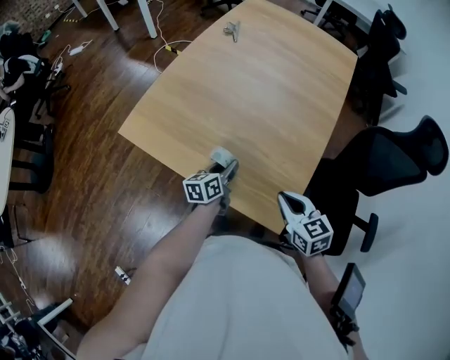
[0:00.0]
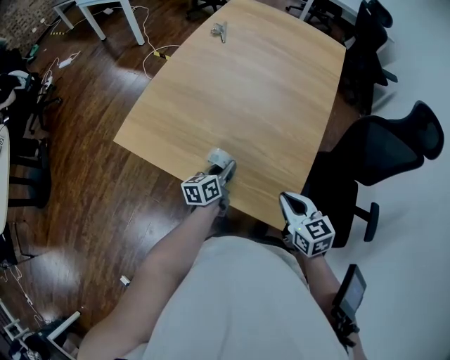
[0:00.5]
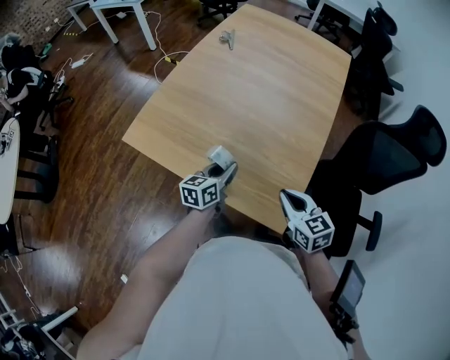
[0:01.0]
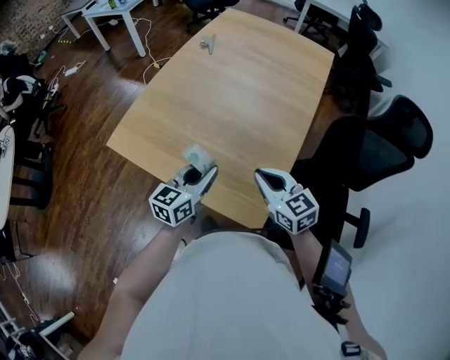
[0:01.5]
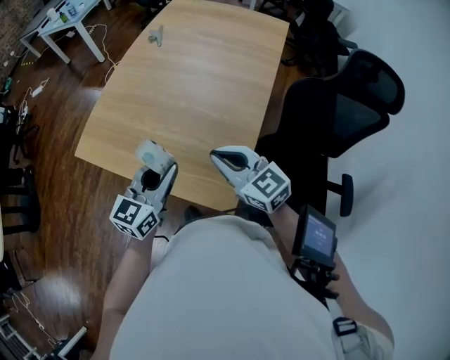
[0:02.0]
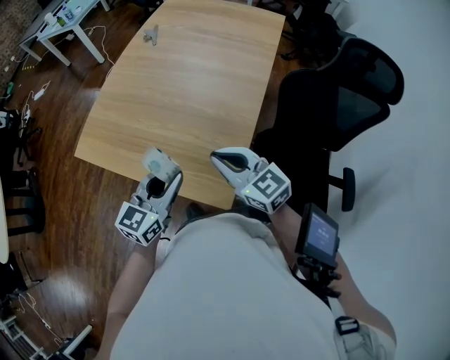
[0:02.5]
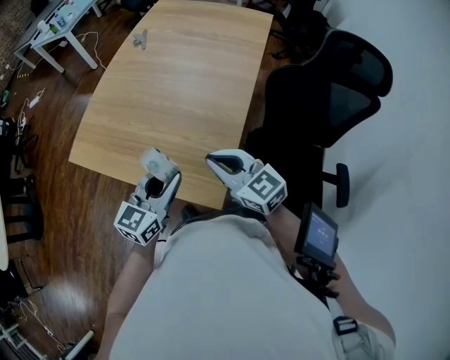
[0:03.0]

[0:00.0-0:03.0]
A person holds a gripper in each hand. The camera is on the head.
0:00.0 to 0:01.5: The right gripper is displaced upward by roughly 5 cm; the left gripper moves upward, some 15 cm, and swivels roughly 30 degrees.
0:01.5 to 0:03.0: The left gripper travels backward and to the right by roughly 10 cm. Meanwhile the right gripper ends up roughly 10 cm from where it was.

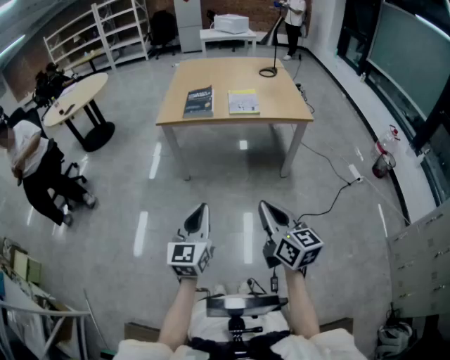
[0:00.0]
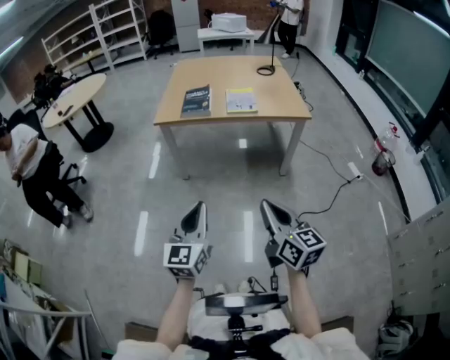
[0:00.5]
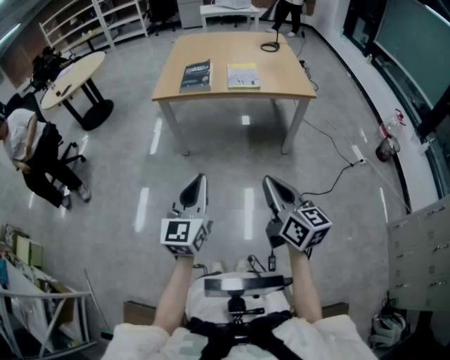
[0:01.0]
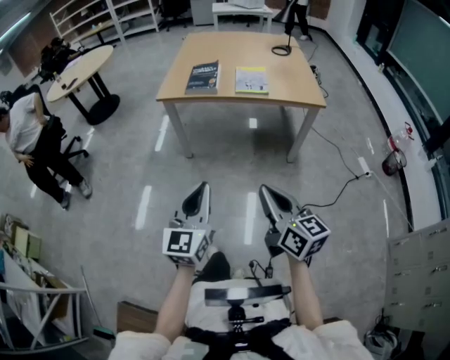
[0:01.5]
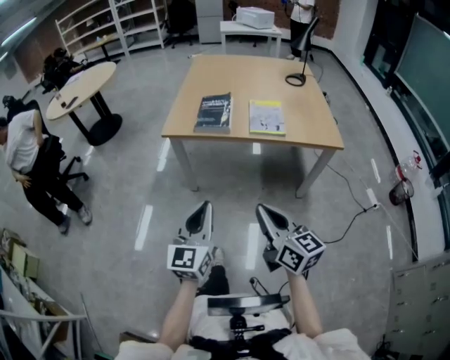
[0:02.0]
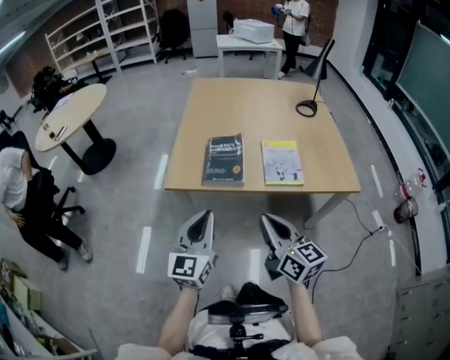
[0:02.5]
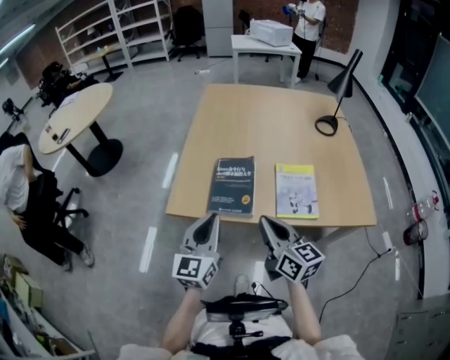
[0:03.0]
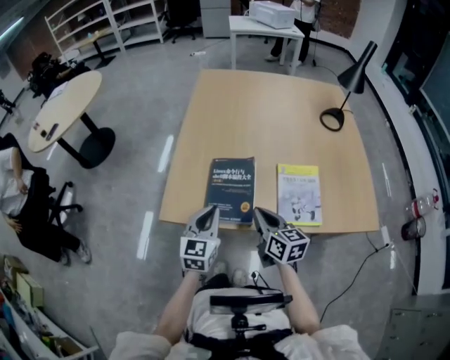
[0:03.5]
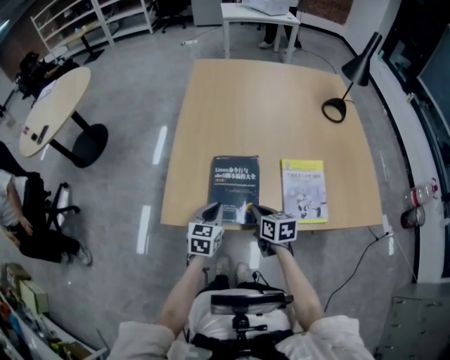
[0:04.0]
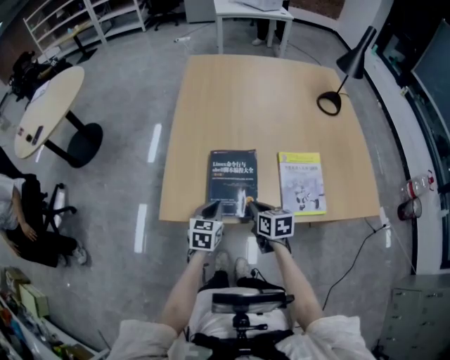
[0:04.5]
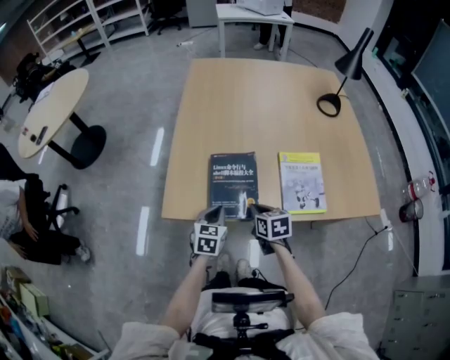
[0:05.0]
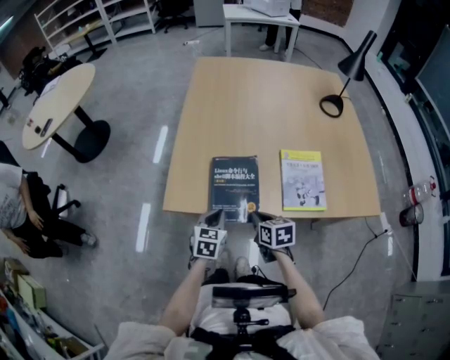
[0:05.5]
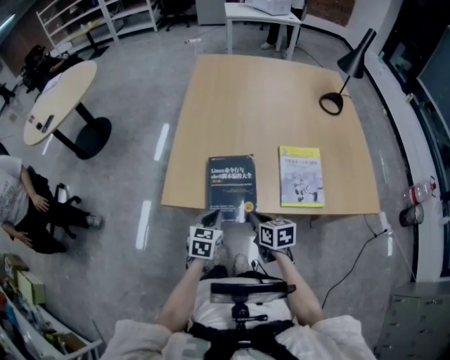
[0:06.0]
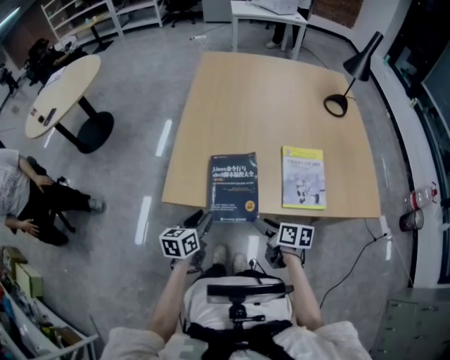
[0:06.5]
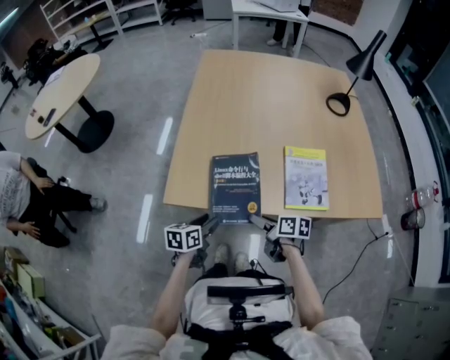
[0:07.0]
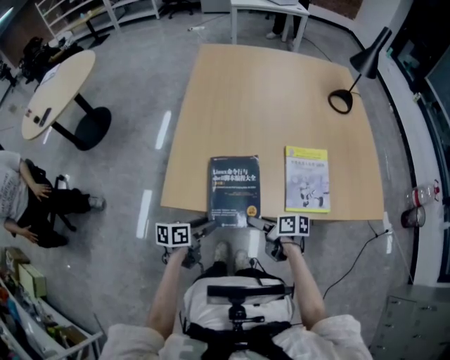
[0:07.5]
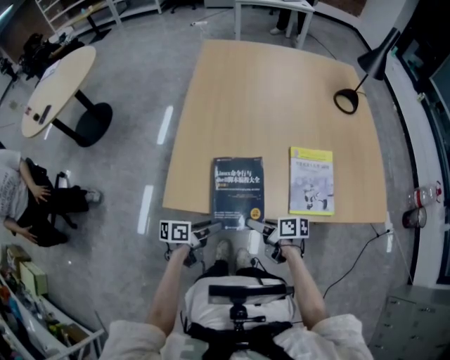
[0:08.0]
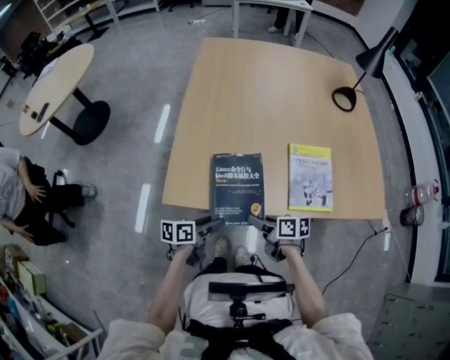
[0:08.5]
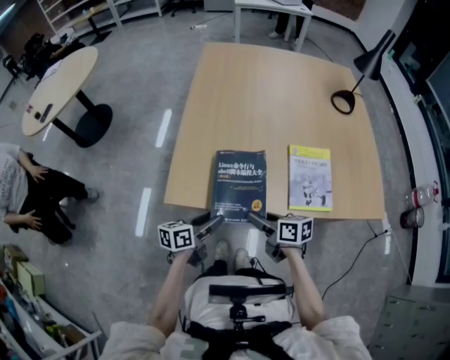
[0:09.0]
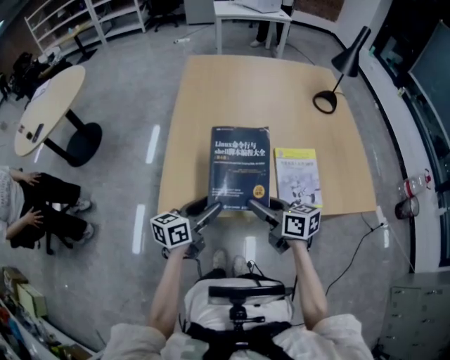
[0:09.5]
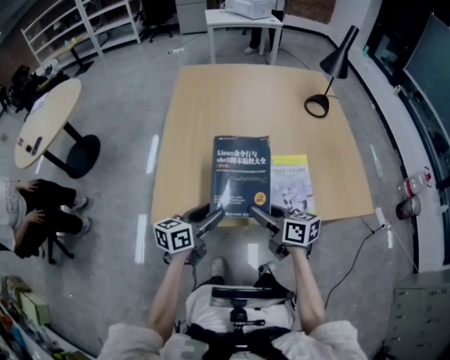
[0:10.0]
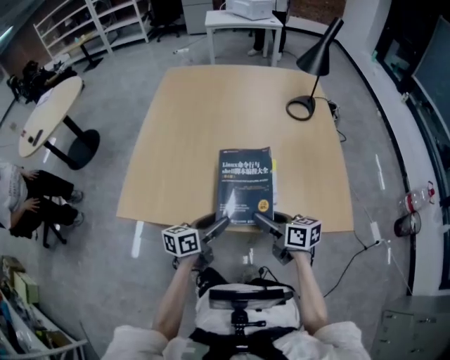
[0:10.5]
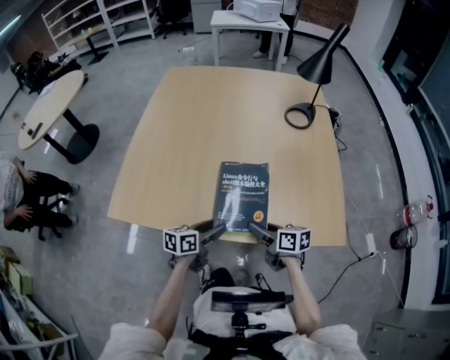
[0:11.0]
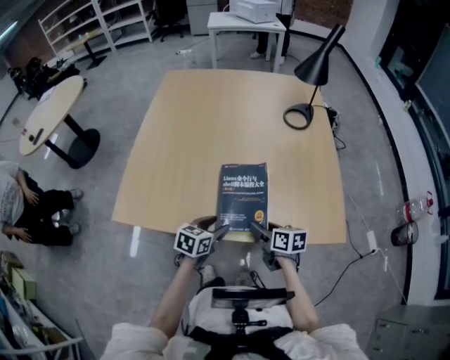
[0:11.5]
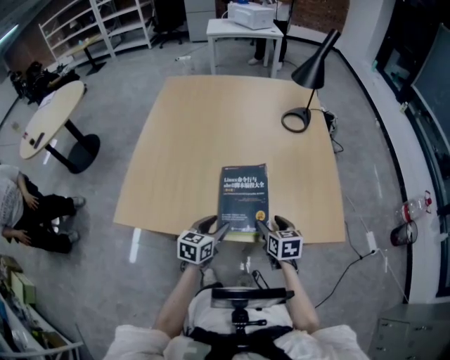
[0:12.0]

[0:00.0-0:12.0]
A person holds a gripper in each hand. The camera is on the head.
0:00.0 to 0:02.0: Both grippers travel together forward, some 25 cm.
0:02.0 to 0:04.0: The two grippers travel together, forward, some 60 cm. The right gripper points its fingers about 30 degrees further downward; the left gripper points its fingers roughly 30 degrees further downward.
0:04.0 to 0:06.0: The two grippers go approximately 10 cm backward.
0:06.0 to 0:08.0: The left gripper turns by roughly 60 degrees, and opens its fingers, while the right gripper turns by about 40 degrees, and opens up.
0:08.0 to 0:10.0: The left gripper shifts about 15 cm upward, forward and to the right, and rotates some 30 degrees, while the right gripper heads upward, covering about 15 cm, and rotates some 30 degrees.
0:10.0 to 0:12.0: The left gripper heads to the right, covering some 20 cm, and turns by some 20 degrees. Meanwhile the right gripper is displaced to the right and downward by approximately 30 cm, and changes its angle by roughly 30 degrees.

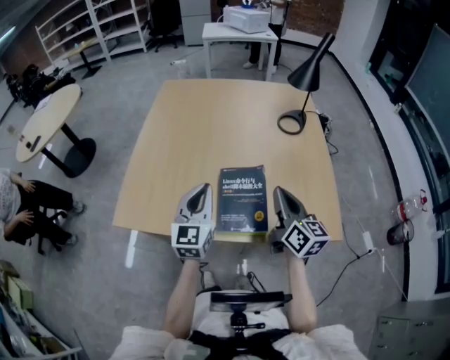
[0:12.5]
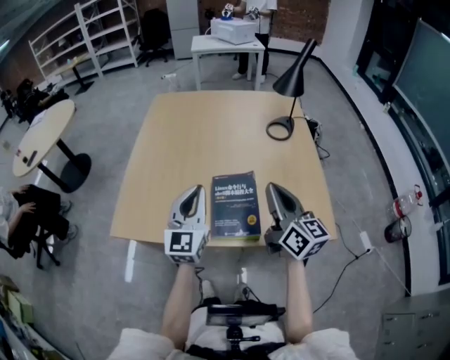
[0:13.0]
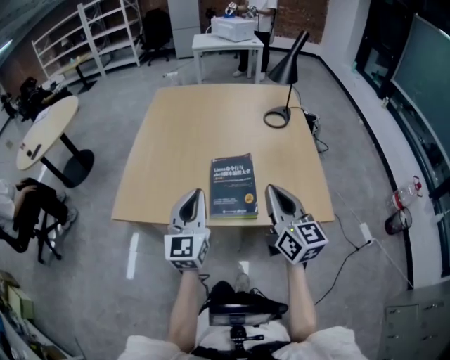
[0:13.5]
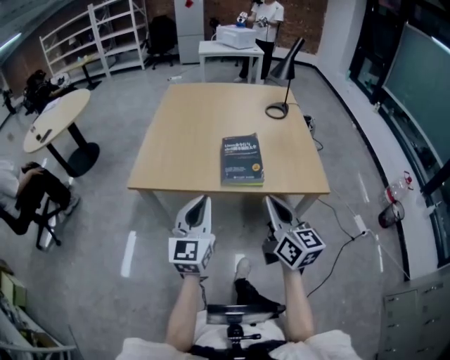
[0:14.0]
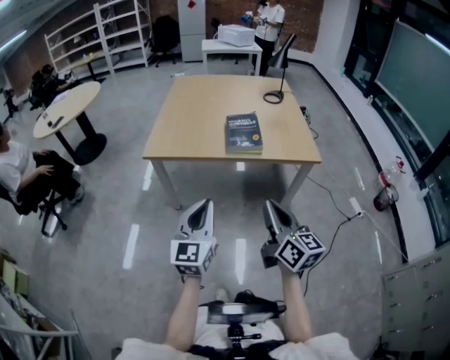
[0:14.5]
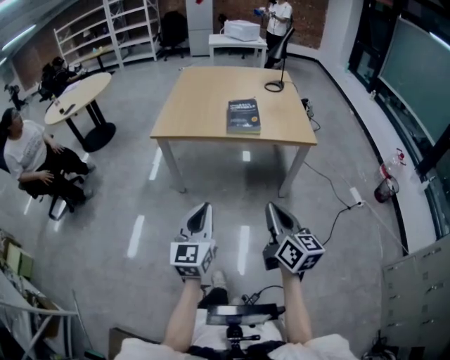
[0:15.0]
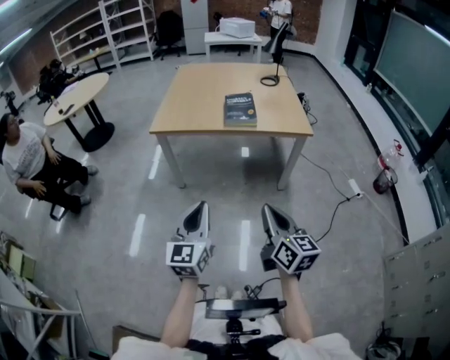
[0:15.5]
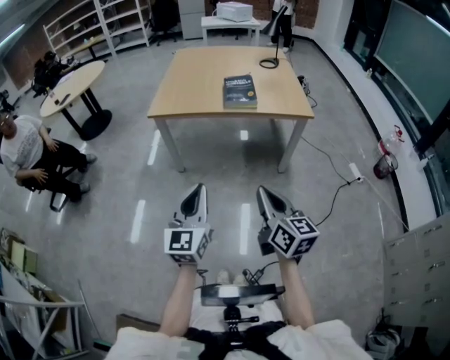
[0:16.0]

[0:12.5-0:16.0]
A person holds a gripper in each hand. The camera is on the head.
0:12.5 to 0:14.5: The two grippers travel together, backward, about 50 cm.
0:14.5 to 0:16.0: Both grippers move backward, approximately 20 cm.

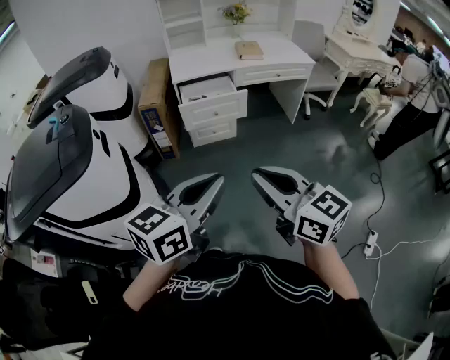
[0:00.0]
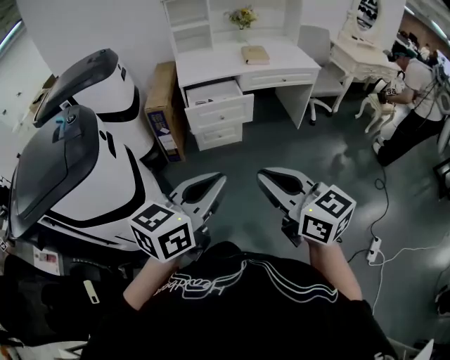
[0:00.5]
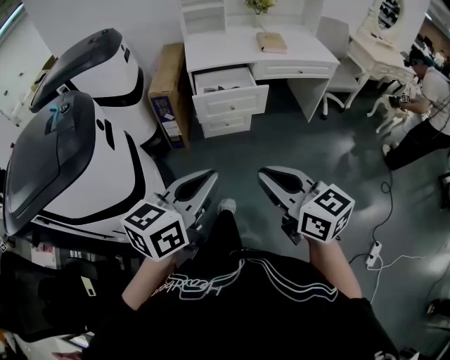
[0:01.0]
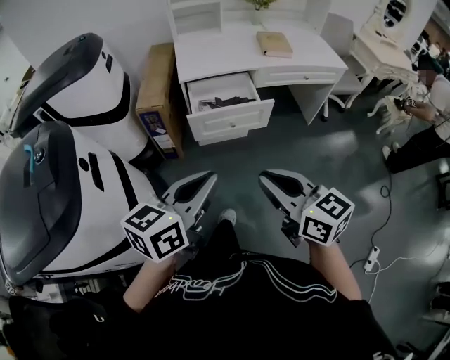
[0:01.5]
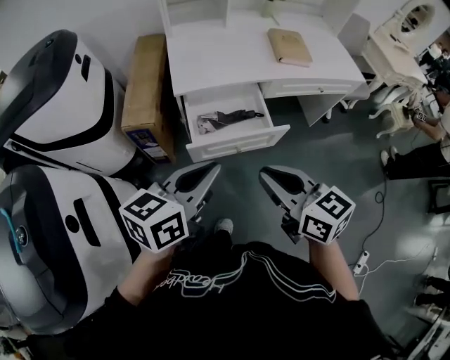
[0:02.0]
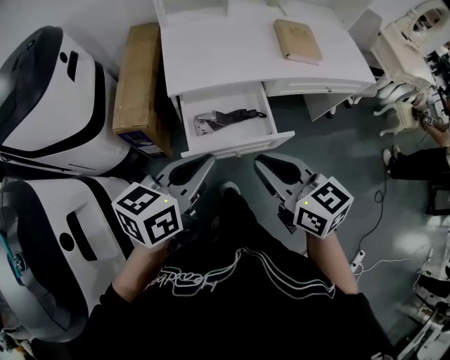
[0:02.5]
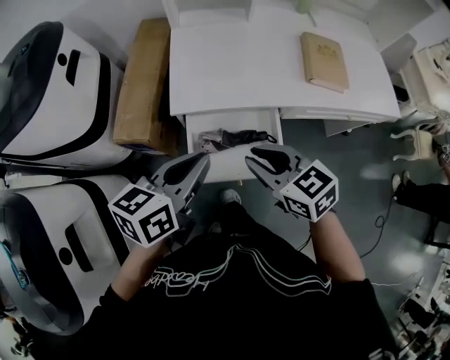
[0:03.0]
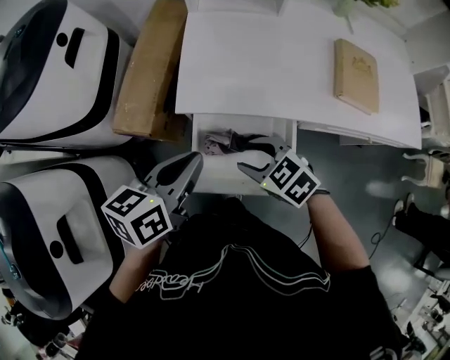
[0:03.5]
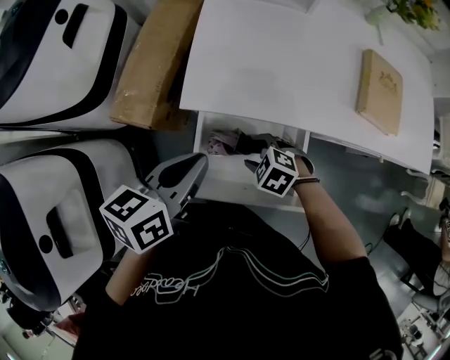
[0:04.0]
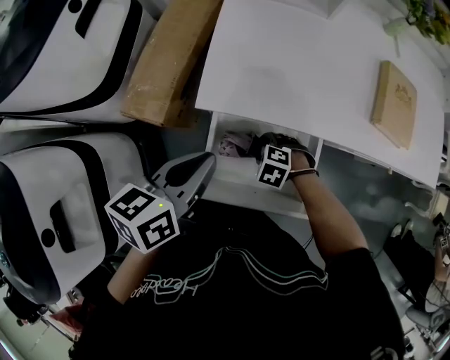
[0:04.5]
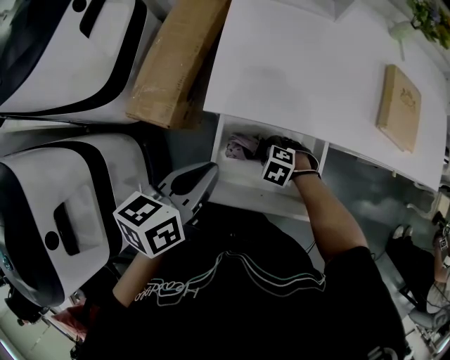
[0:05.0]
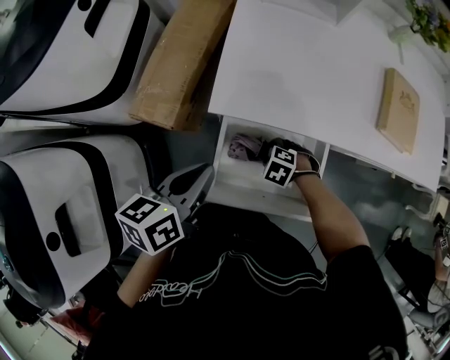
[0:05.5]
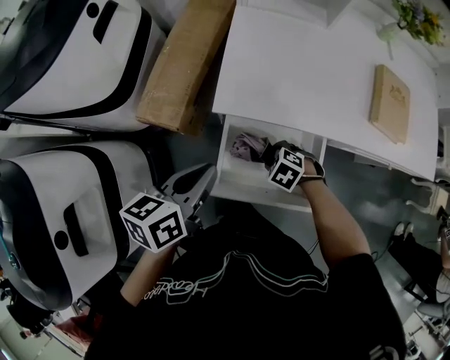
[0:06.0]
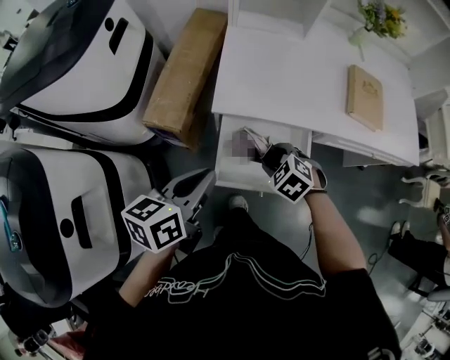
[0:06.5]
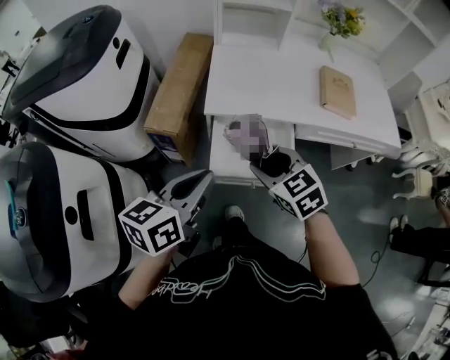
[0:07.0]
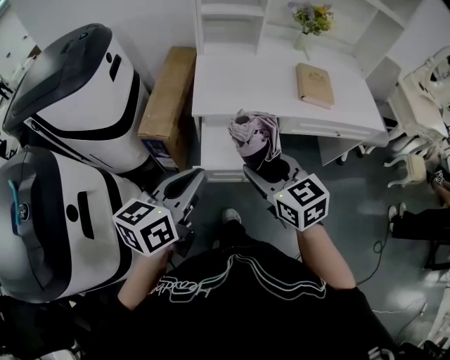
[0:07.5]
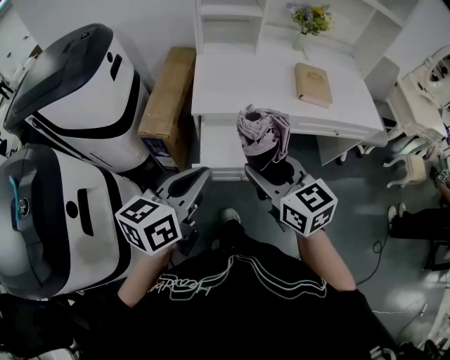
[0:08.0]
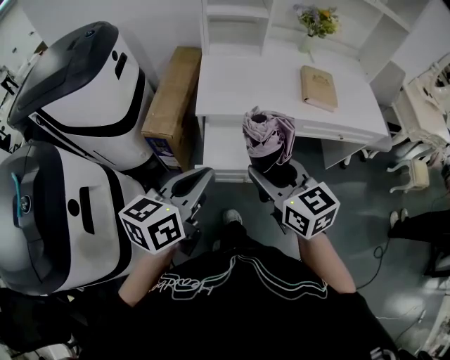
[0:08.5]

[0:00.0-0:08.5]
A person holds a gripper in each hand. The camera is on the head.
0:00.0 to 0:02.0: The pair of grippers is taken forward, roughly 50 cm.
0:02.0 to 0:04.0: The right gripper moves downward, roughly 35 cm, tips its fingers downward by some 50 degrees, and opens, while the left gripper shifts by some 35 cm, and swivels some 30 degrees.
0:04.0 to 0:06.5: The right gripper goes approximately 10 cm upward. Meanwhile the left gripper moves roughly 15 cm.
0:06.5 to 0:08.5: The right gripper moves upward and backward, about 30 cm, and points its fingers roughly 50 degrees further upward. The left gripper moves backward and upward, about 20 cm.
